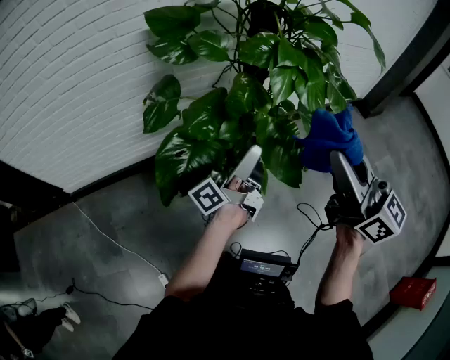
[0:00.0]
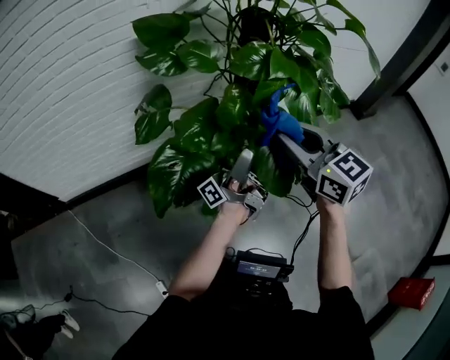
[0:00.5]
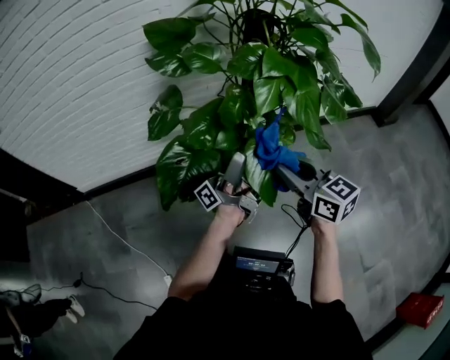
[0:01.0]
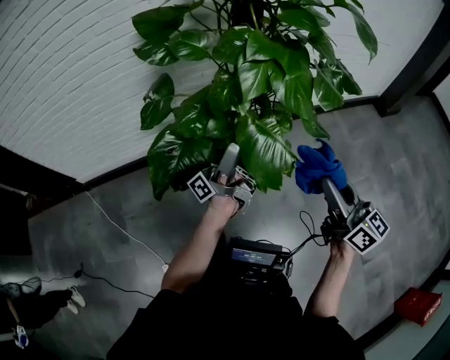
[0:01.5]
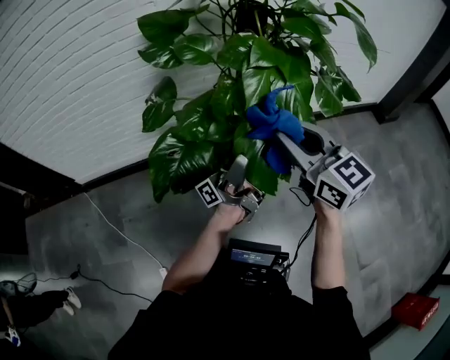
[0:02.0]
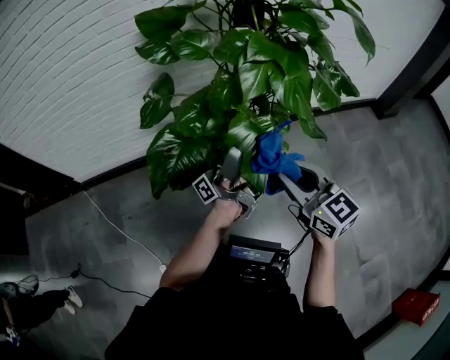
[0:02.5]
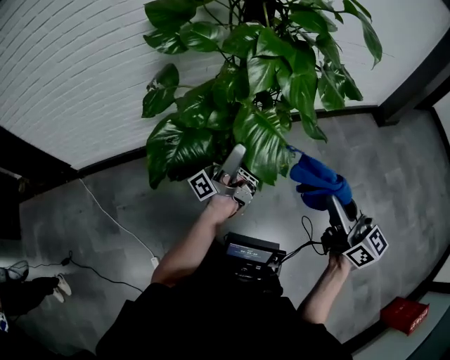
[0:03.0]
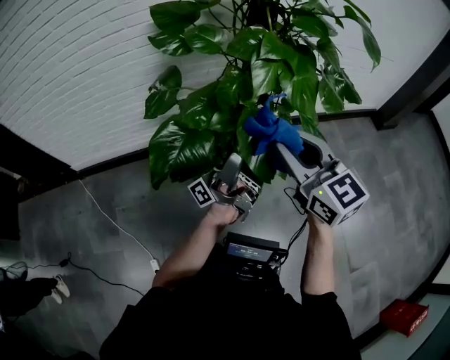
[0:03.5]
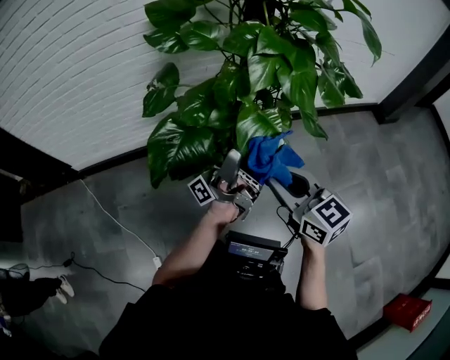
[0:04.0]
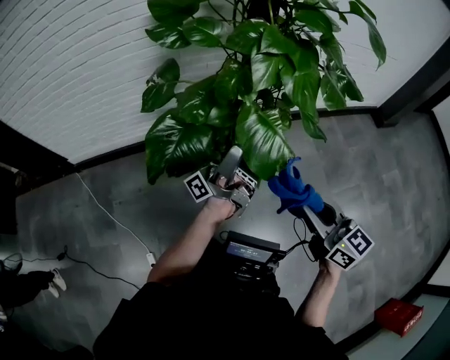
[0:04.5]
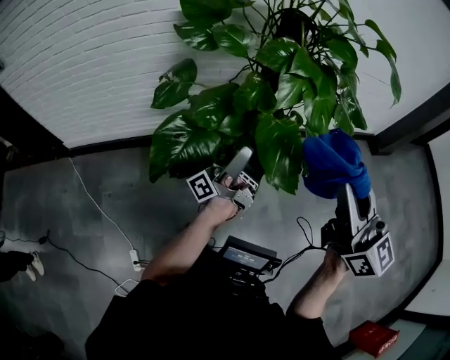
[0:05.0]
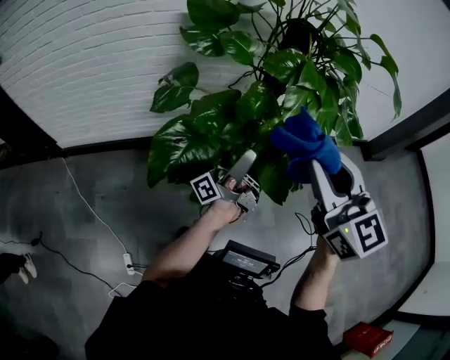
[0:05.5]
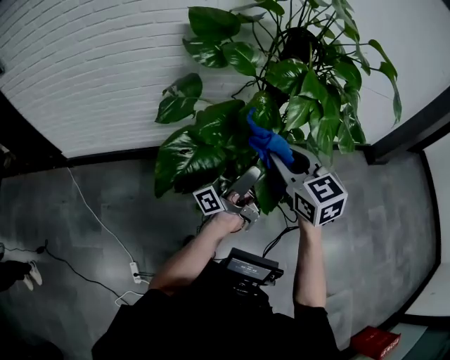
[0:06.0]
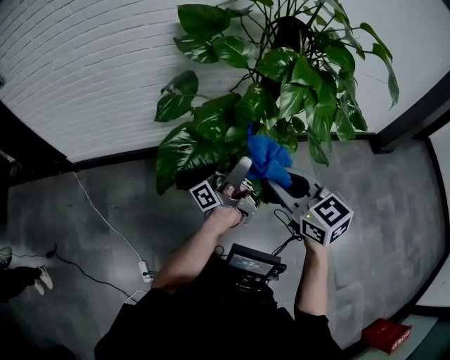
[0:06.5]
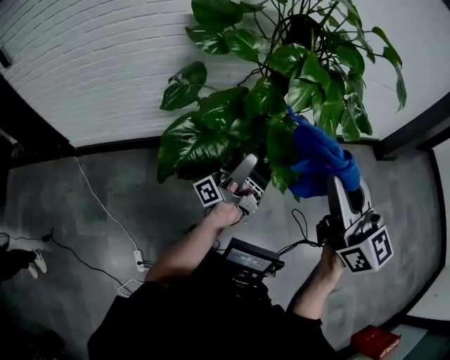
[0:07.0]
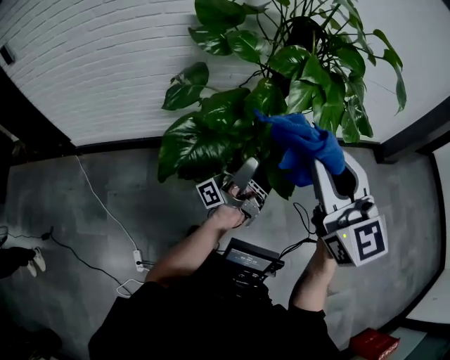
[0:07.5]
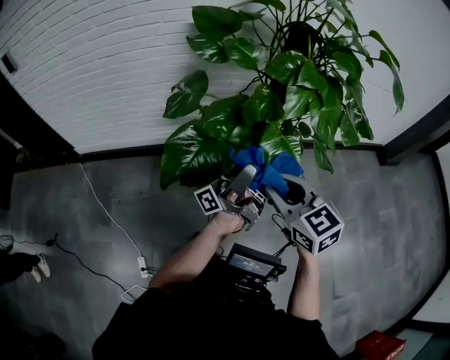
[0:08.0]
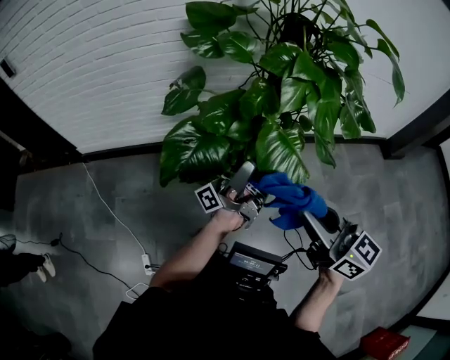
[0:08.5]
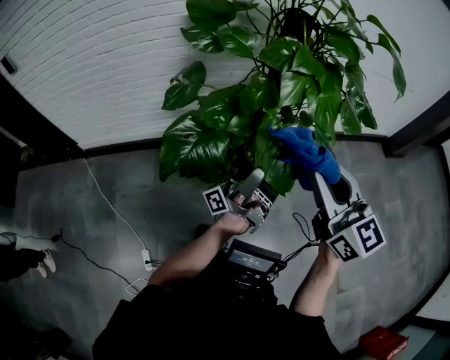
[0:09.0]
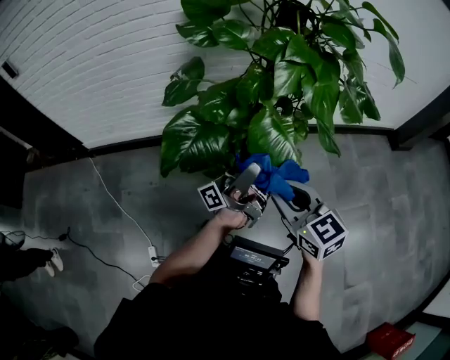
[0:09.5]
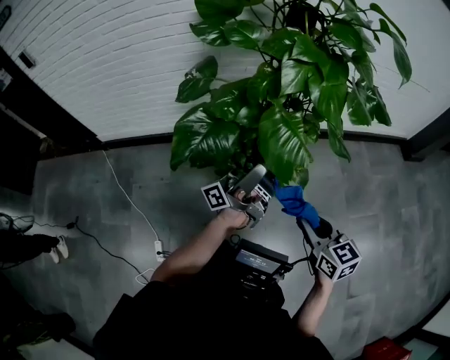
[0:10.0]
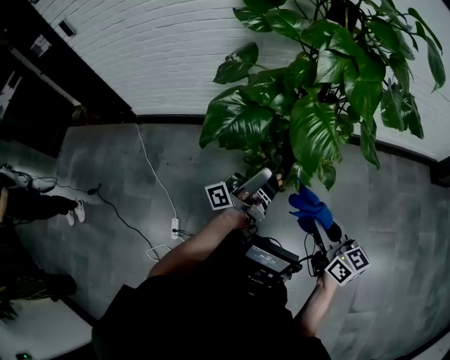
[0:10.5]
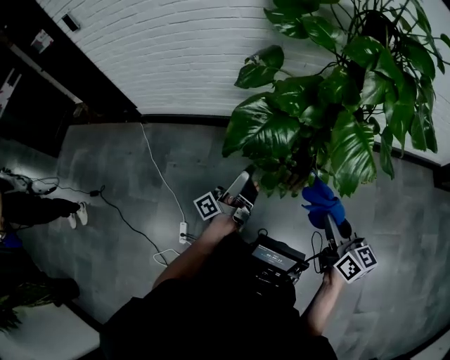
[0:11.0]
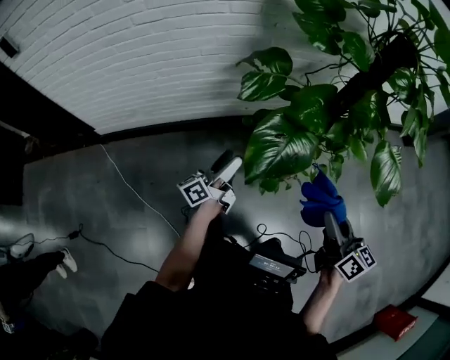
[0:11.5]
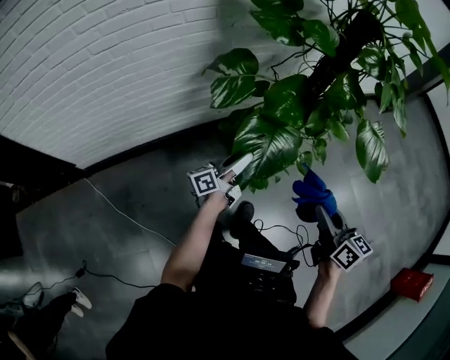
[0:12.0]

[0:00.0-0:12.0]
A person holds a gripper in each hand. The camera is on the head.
0:00.0 to 0:02.0: The right gripper turns by about 20 degrees.
0:02.0 to 0:04.0: The right gripper goes up and down, approximately 10 cm each way, reversing 2 times.
0:04.0 to 0:06.0: The right gripper goes upward and returns, approximately 20 cm each way.
0:06.0 to 0:08.0: The right gripper moves roughly 10 cm upward and comes back.
0:08.0 to 0:10.0: The right gripper ends up roughly 20 cm from where it was.
0:10.0 to 0:12.0: The right gripper moves about 30 cm, and changes its angle by some 30 degrees.

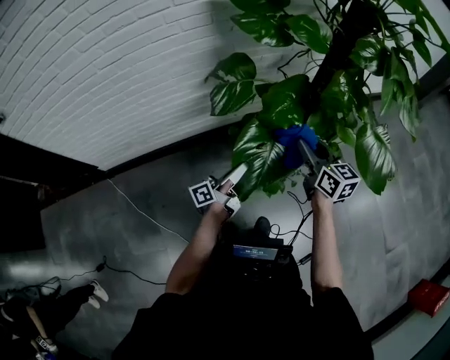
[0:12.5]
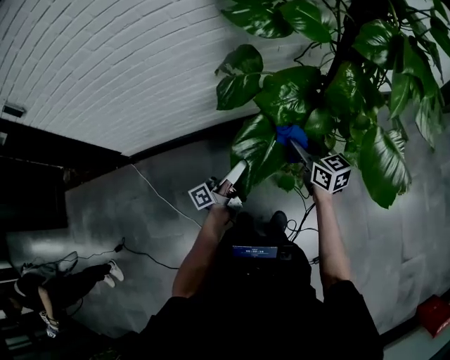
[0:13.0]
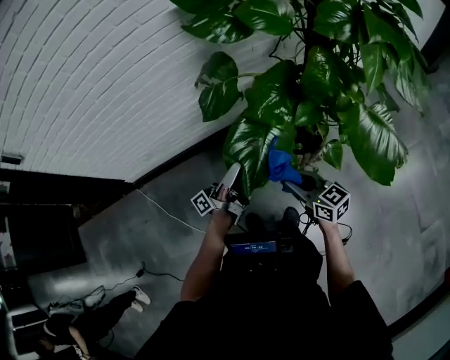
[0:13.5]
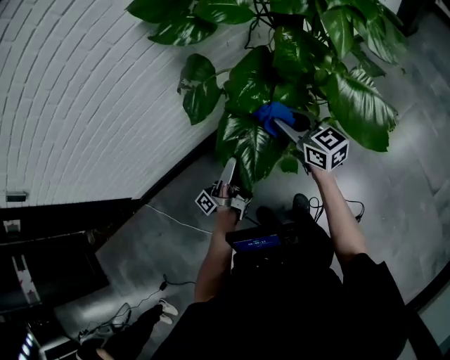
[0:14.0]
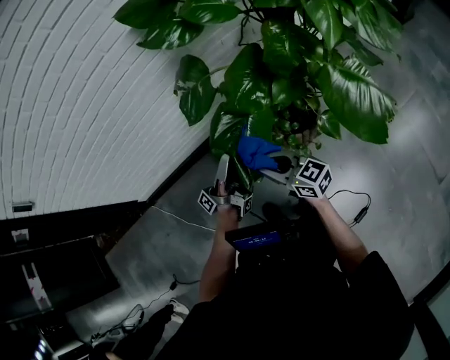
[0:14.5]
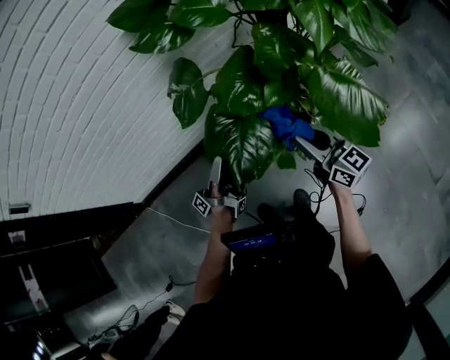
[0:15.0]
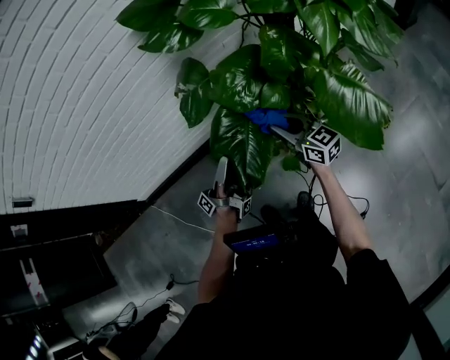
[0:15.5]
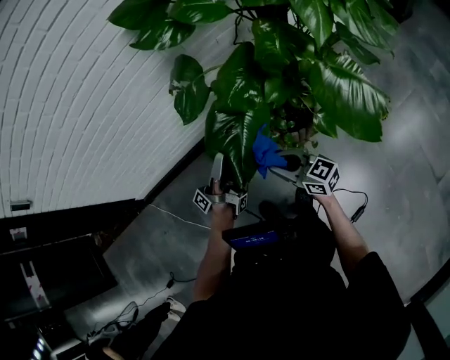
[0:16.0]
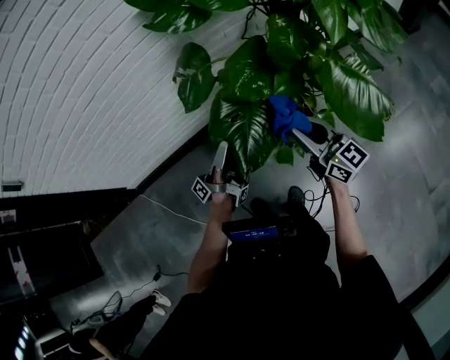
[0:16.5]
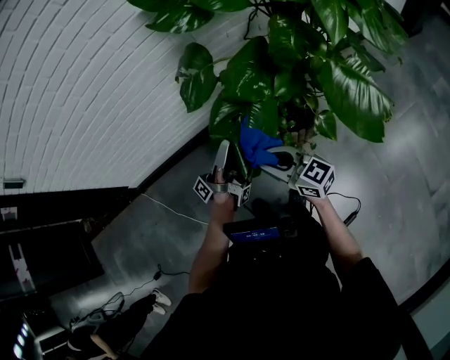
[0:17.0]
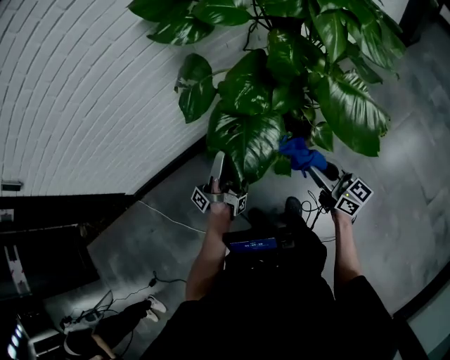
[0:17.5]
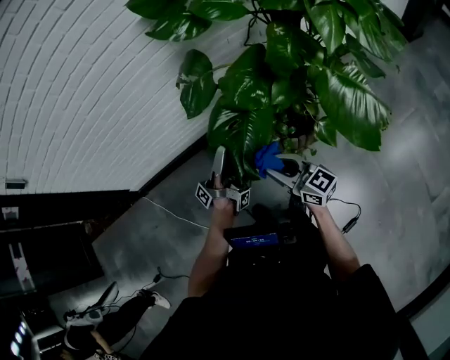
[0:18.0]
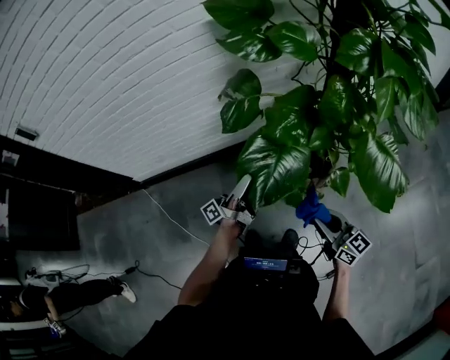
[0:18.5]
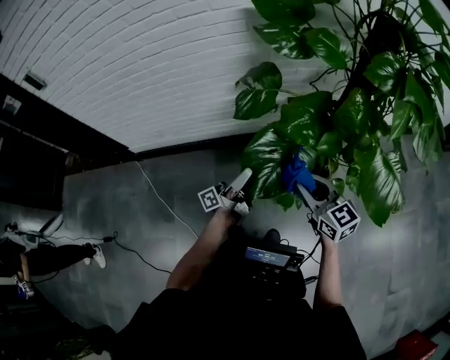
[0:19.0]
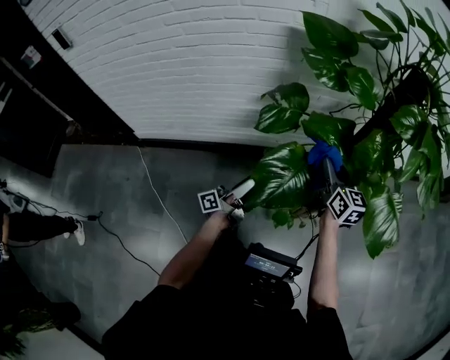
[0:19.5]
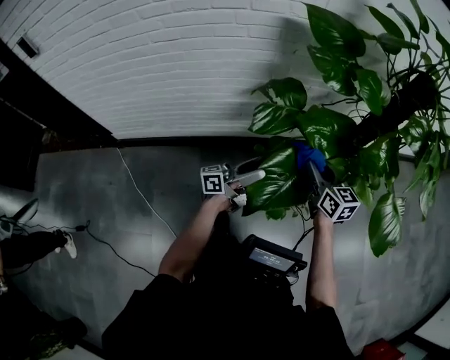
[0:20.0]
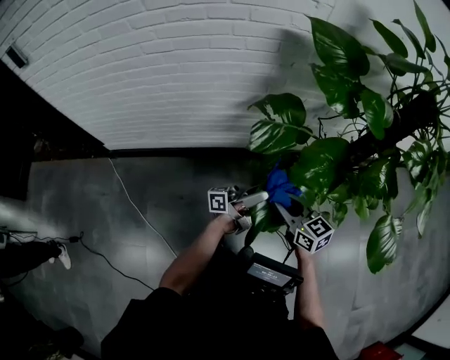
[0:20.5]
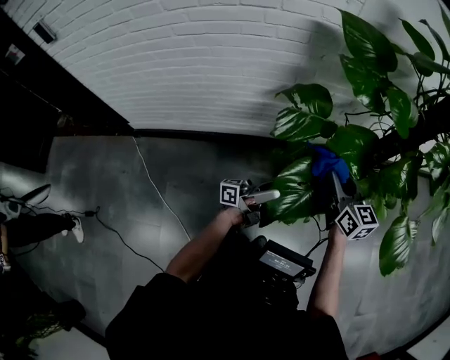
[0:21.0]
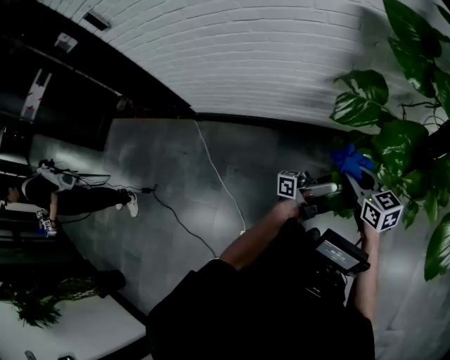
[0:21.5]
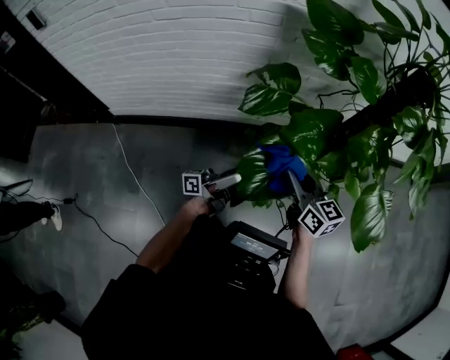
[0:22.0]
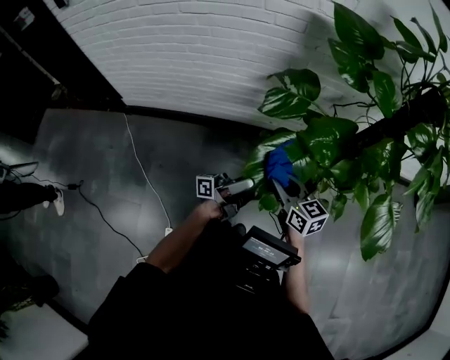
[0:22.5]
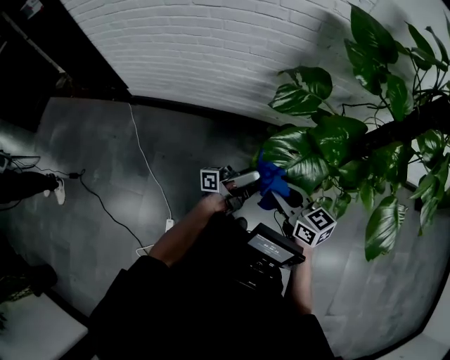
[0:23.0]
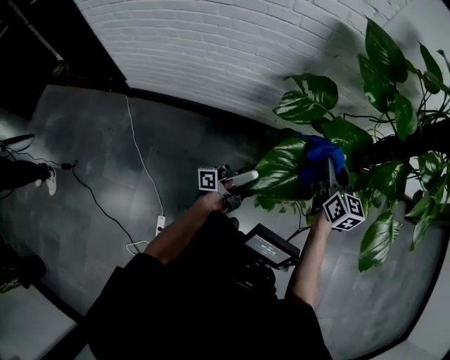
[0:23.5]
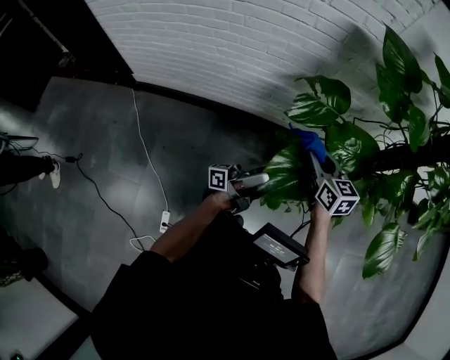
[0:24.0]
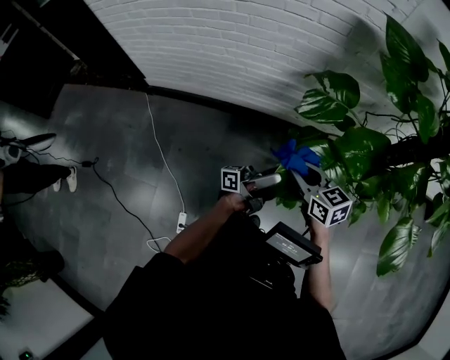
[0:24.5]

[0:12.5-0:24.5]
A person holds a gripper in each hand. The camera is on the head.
0:12.5 to 0:14.5: The right gripper moves up and down over about 10 cm, changing direction 2 times, and changes its angle by roughly 30 degrees.
0:14.5 to 0:16.5: The right gripper moves up and down over approximately 10 cm, changing direction 2 times, and swivels some 20 degrees.
0:16.5 to 0:18.5: The right gripper moves roughly 10 cm.
0:18.5 to 0:20.5: The right gripper reaches about 10 cm upward, then returns, and turns by some 20 degrees.
0:20.5 to 0:22.5: The right gripper swings up and down, some 10 cm each way, with 3 reversals.
0:22.5 to 0:24.5: The right gripper goes upward and returns, some 10 cm each way.

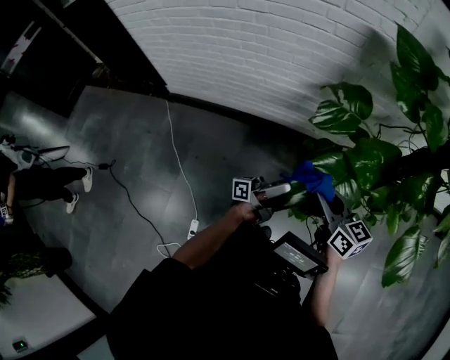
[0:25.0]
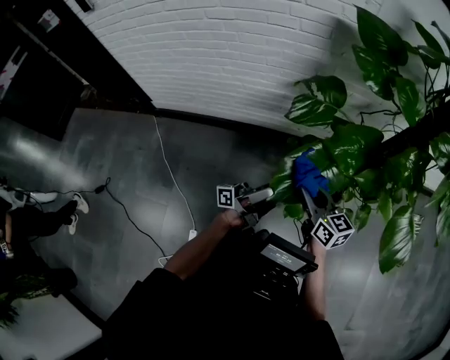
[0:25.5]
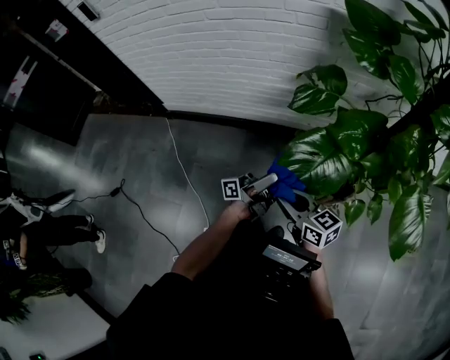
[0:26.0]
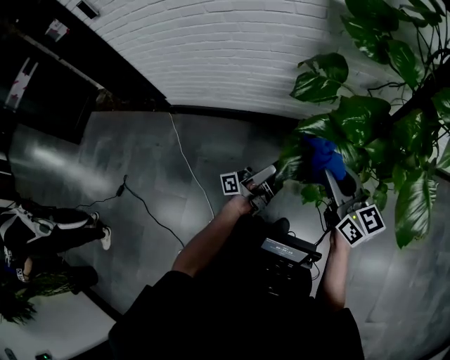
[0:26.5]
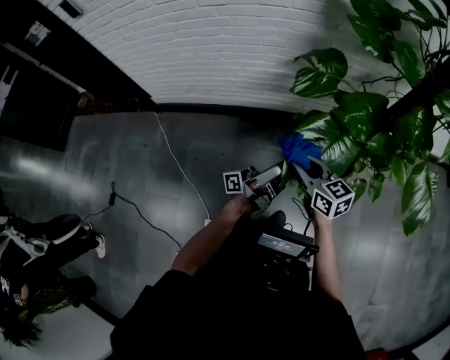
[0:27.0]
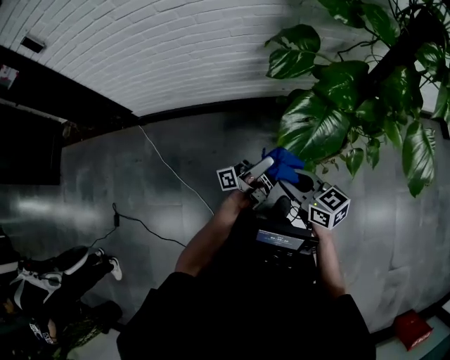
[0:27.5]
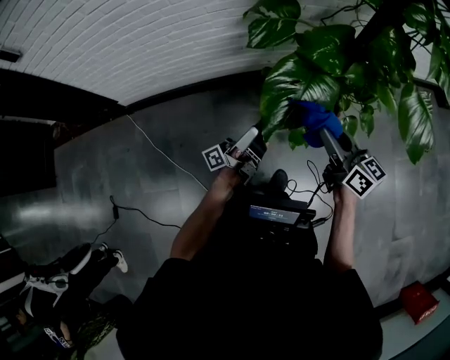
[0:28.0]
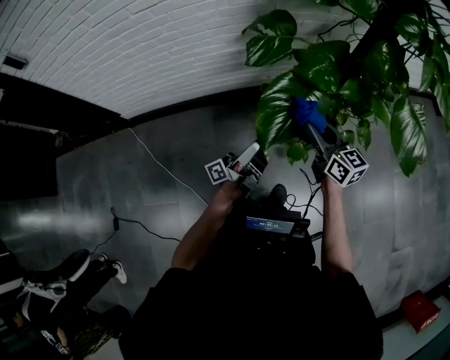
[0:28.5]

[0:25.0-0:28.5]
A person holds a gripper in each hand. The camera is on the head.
0:25.0 to 0:27.0: The right gripper swings up and down, some 10 cm each way, with 2 reversals.
0:27.0 to 0:28.5: The right gripper changes place by roughly 15 cm, and turns by about 20 degrees.
